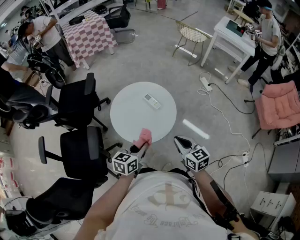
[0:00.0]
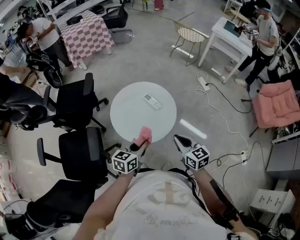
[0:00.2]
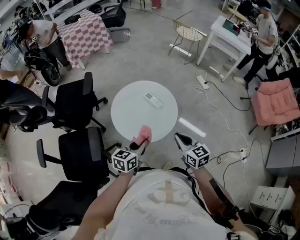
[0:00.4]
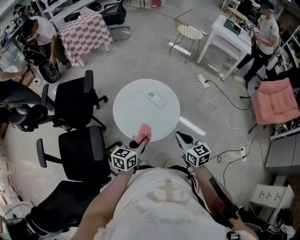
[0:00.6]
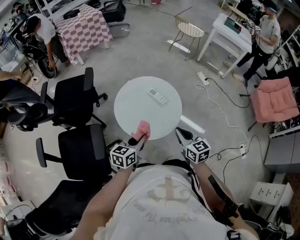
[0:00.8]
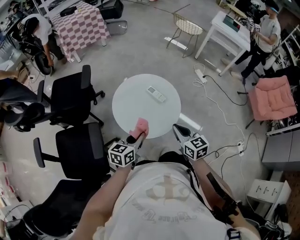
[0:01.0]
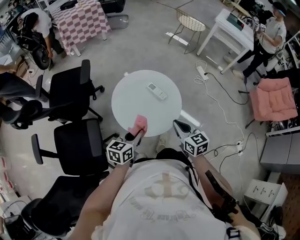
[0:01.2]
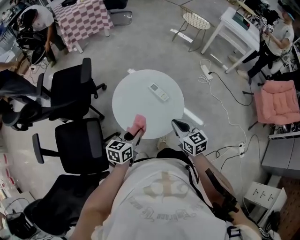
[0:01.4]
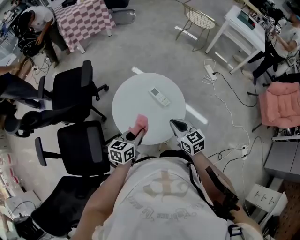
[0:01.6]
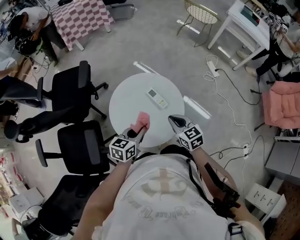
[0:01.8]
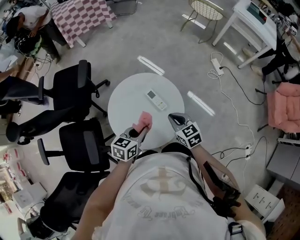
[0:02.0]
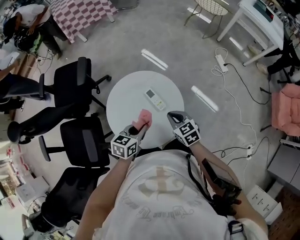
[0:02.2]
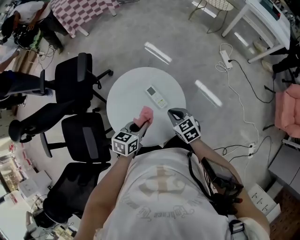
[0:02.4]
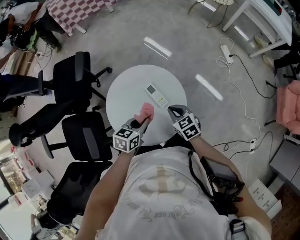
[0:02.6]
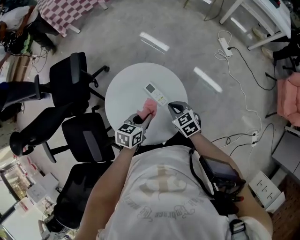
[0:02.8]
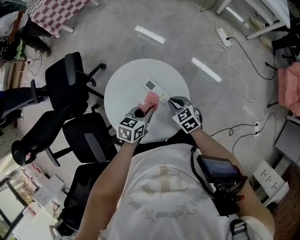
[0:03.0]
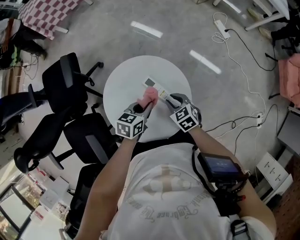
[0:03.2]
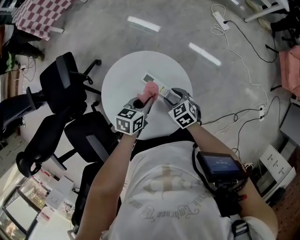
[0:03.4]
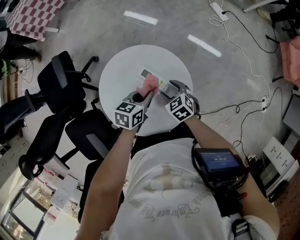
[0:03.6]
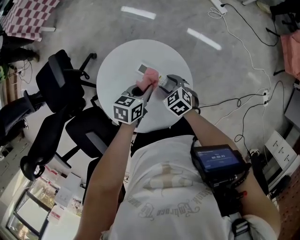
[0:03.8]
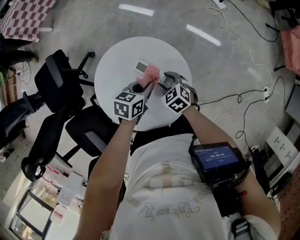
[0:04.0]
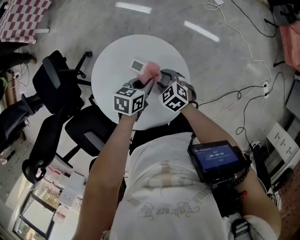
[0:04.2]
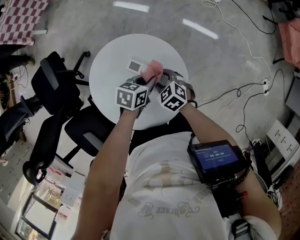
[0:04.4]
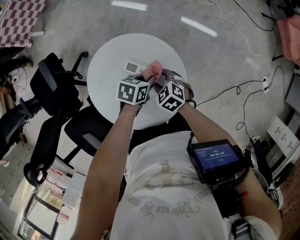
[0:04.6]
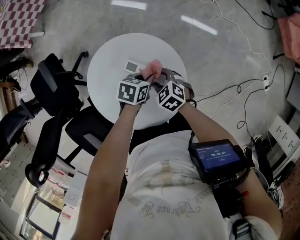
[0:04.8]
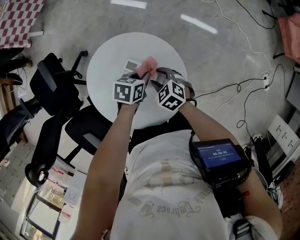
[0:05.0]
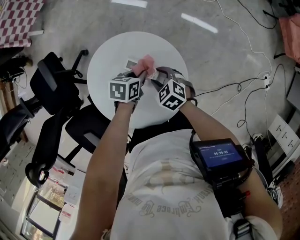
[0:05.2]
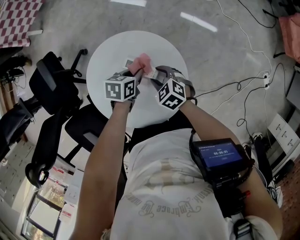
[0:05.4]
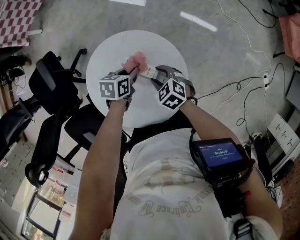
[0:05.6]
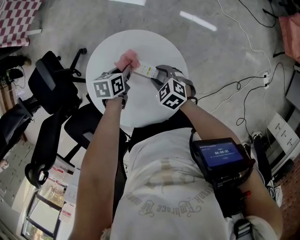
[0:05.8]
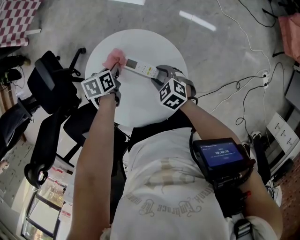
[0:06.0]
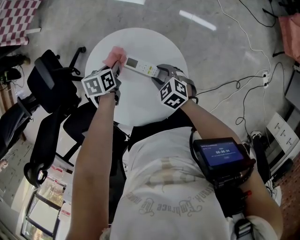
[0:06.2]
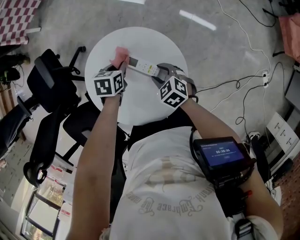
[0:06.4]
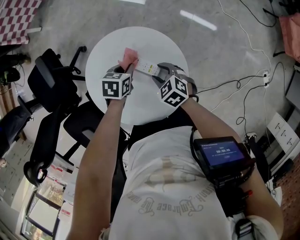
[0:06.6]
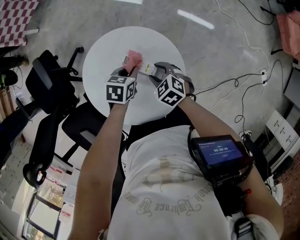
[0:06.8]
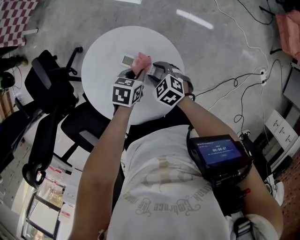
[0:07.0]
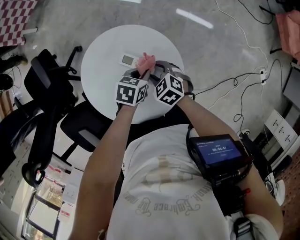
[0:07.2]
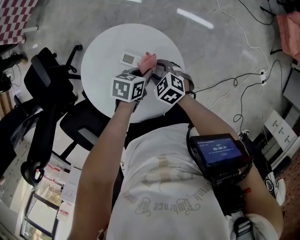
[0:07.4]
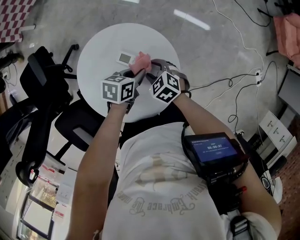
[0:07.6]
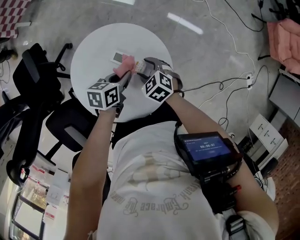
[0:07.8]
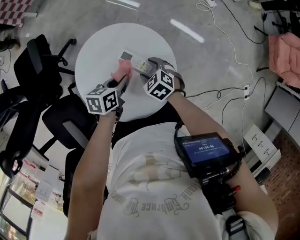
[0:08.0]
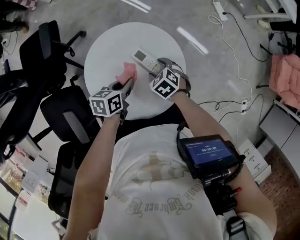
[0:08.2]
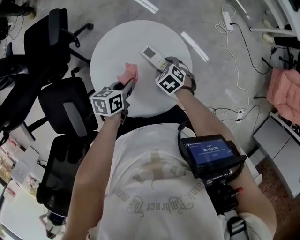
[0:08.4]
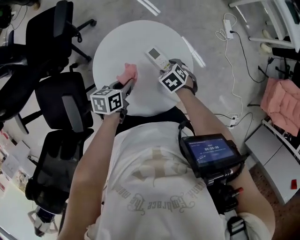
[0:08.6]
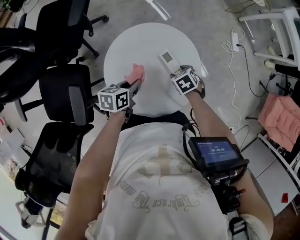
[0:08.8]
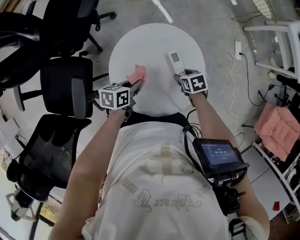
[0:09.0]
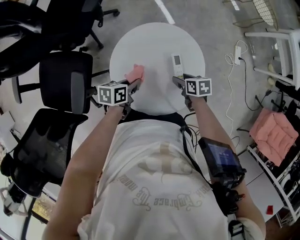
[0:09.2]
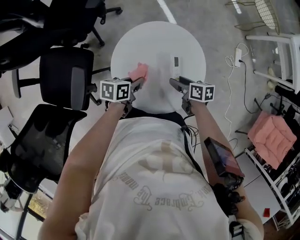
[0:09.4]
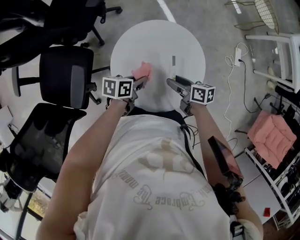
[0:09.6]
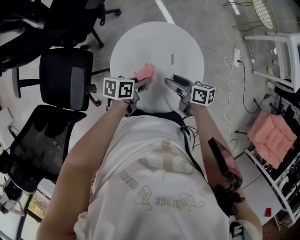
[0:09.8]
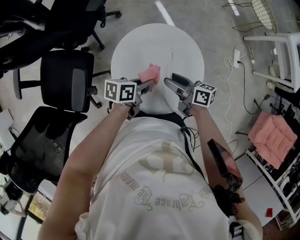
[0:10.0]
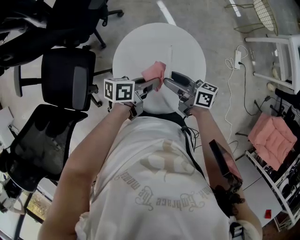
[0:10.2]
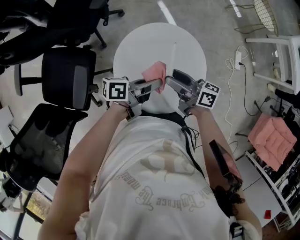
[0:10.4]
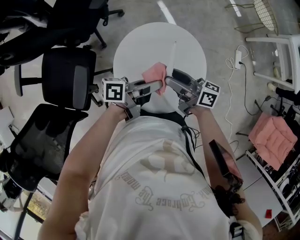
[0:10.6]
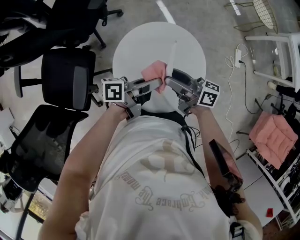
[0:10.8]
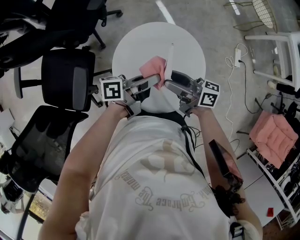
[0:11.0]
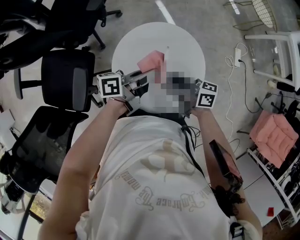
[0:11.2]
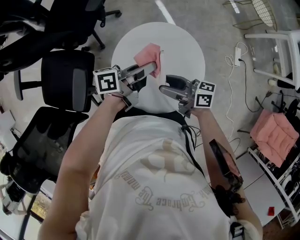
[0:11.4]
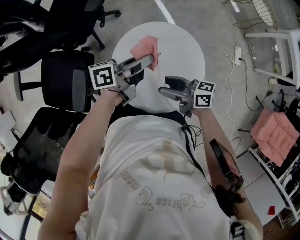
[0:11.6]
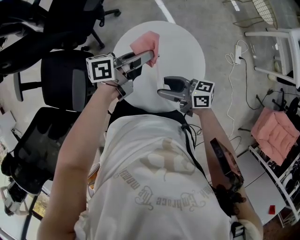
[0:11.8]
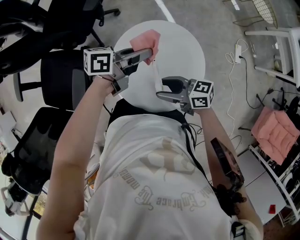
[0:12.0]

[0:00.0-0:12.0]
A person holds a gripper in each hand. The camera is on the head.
0:00.0 to 0:01.6: The two grippers go about 15 cm forward and to the left.
0:01.6 to 0:03.0: The left gripper goes approximately 20 cm forward, to the right and downward. Meanwhile the right gripper is displaced downward and forward by roughly 20 cm, and swivels approximately 20 degrees.
0:03.0 to 0:04.4: Both grippers move downward, about 5 cm. The right gripper opens up.
0:04.4 to 0:06.0: The left gripper ends up about 15 cm from where it was, and swivels roughly 30 degrees.
0:06.0 to 0:07.6: The left gripper shifts by about 15 cm, and changes its angle by some 20 degrees.
0:07.6 to 0:09.0: The left gripper shifts by approximately 20 cm, and rotates some 40 degrees.
0:09.0 to 0:10.4: The right gripper is displaced upward by some 20 cm, and points its fingers roughly 60 degrees further upward, while the left gripper shifts roughly 10 cm upward, and tips its fingers upward by approximately 40 degrees.
0:10.4 to 0:12.0: The right gripper moves approximately 5 cm, and swivels about 30 degrees; the left gripper shifts by approximately 10 cm.

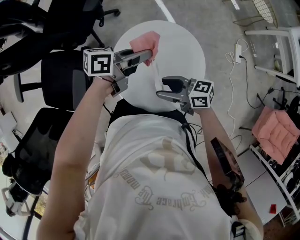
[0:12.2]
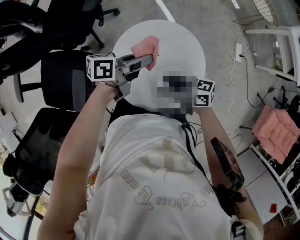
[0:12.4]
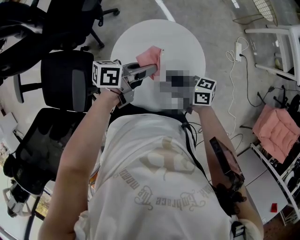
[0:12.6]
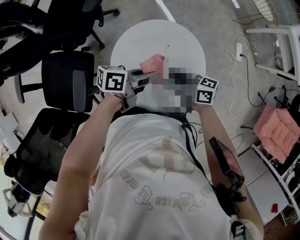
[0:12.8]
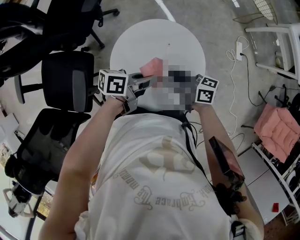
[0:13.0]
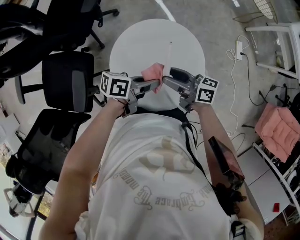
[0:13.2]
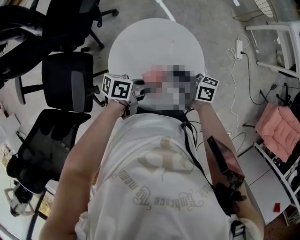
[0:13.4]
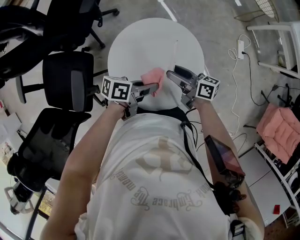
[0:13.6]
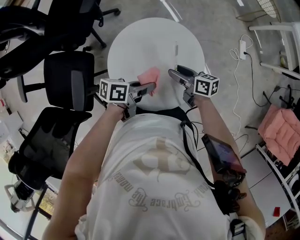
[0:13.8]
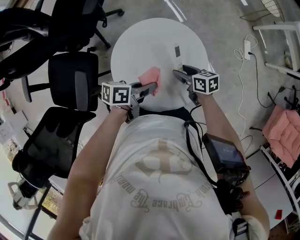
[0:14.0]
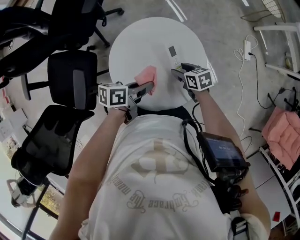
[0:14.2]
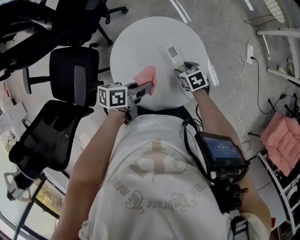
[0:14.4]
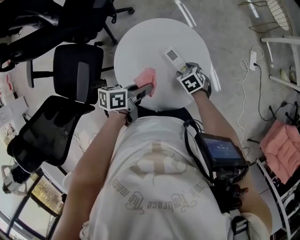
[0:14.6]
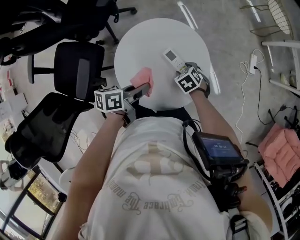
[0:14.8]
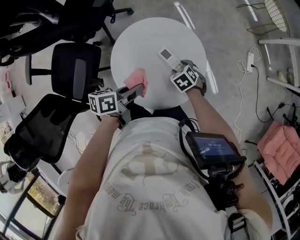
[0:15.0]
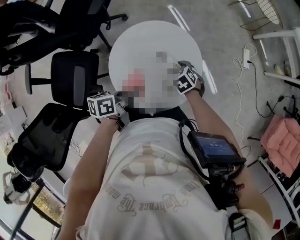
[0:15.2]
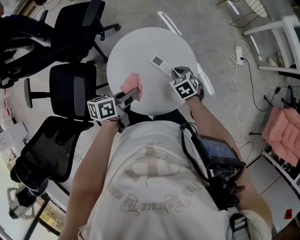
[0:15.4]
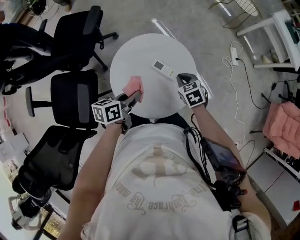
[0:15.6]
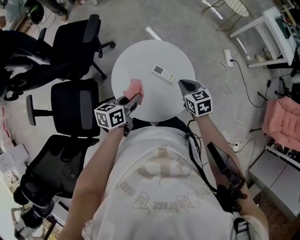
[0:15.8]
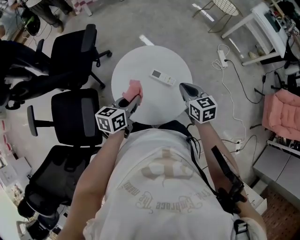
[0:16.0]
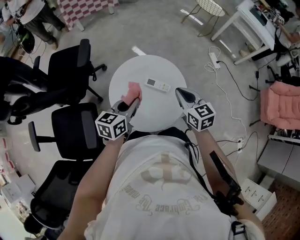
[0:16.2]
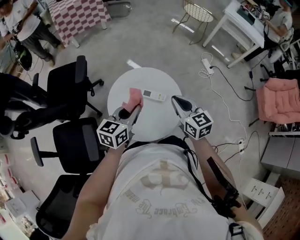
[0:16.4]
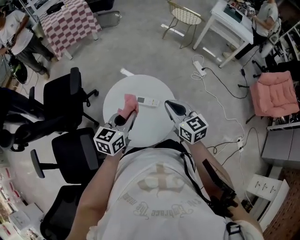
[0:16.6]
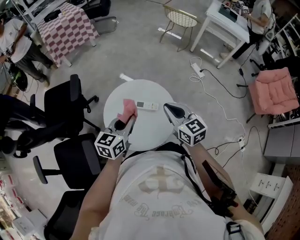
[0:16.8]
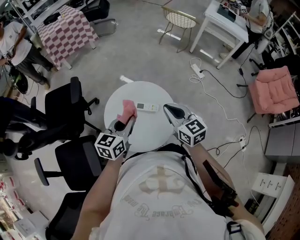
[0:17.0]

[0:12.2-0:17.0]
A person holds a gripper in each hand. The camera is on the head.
0:12.2 to 0:13.8: The left gripper shifts by about 15 cm; the right gripper shifts by roughly 15 cm, and changes its angle by some 30 degrees.
0:13.8 to 0:15.4: The right gripper reaches roughly 10 cm downward, then returns, points its fingers approximately 40 degrees further downward, and closes. Meanwhile the left gripper changes place by some 5 cm, and turns by about 20 degrees.
0:15.4 to 0:17.0: The right gripper moves upward, some 25 cm, and points its fingers some 40 degrees further upward, while the left gripper travels upward by roughly 15 cm, and rolls clockwise, seen from behind, by about 50 degrees.

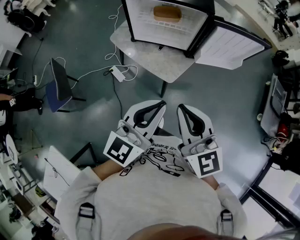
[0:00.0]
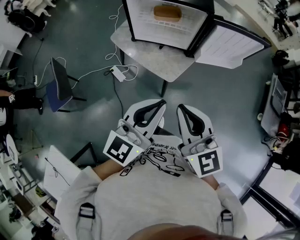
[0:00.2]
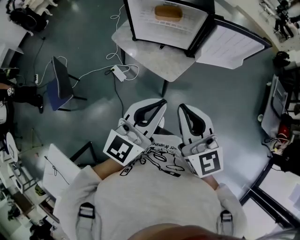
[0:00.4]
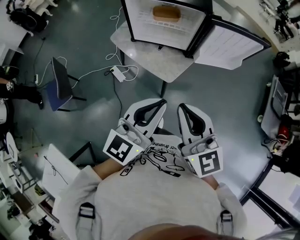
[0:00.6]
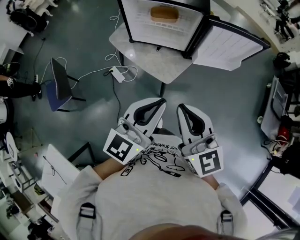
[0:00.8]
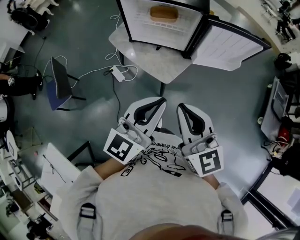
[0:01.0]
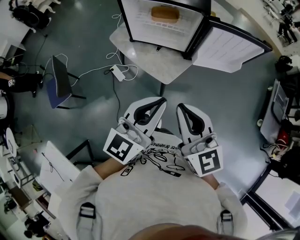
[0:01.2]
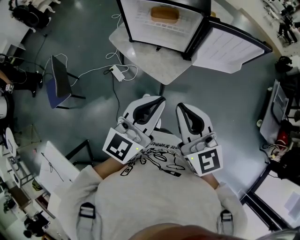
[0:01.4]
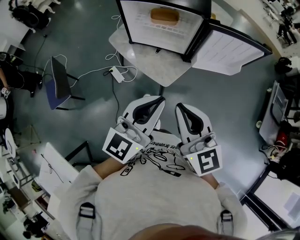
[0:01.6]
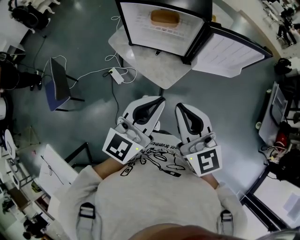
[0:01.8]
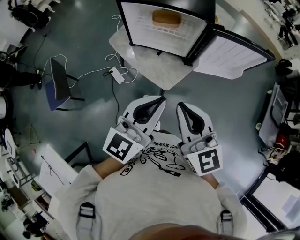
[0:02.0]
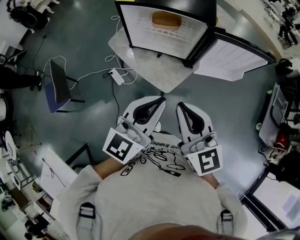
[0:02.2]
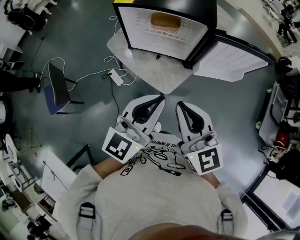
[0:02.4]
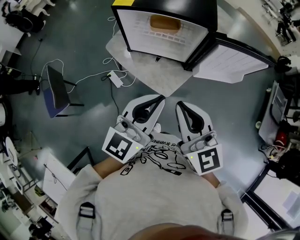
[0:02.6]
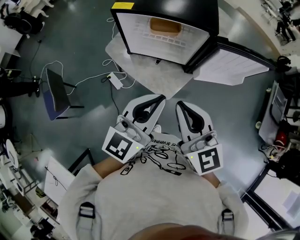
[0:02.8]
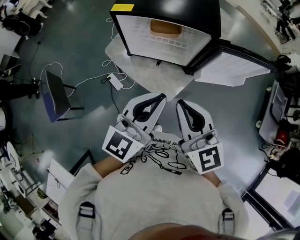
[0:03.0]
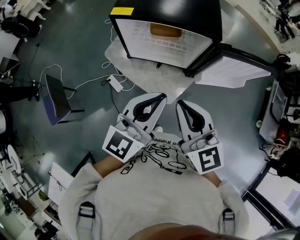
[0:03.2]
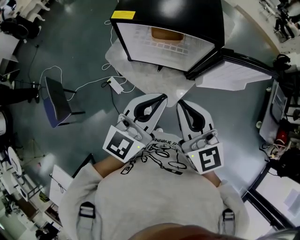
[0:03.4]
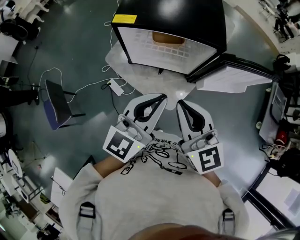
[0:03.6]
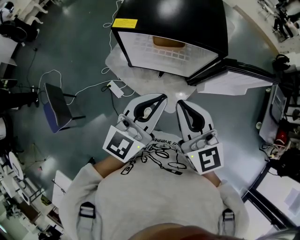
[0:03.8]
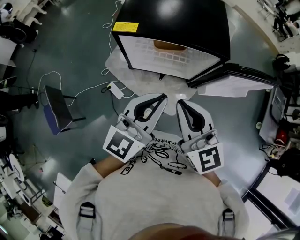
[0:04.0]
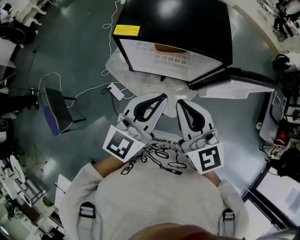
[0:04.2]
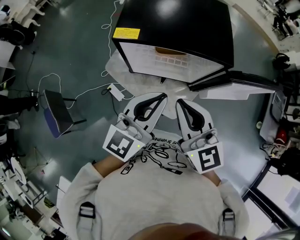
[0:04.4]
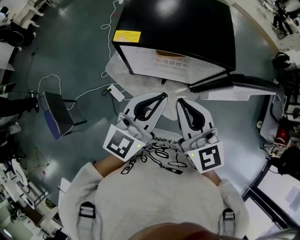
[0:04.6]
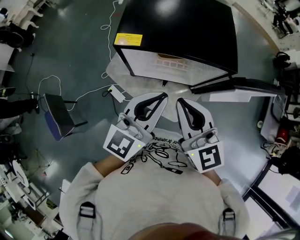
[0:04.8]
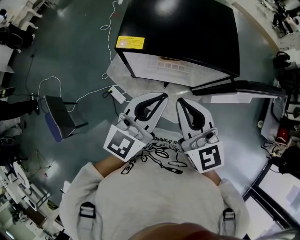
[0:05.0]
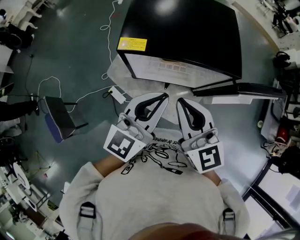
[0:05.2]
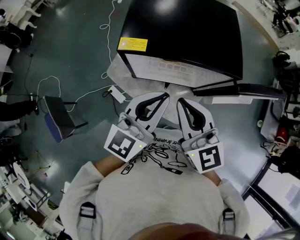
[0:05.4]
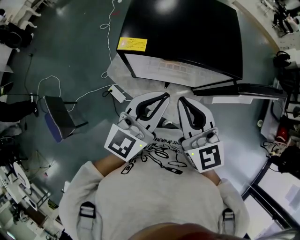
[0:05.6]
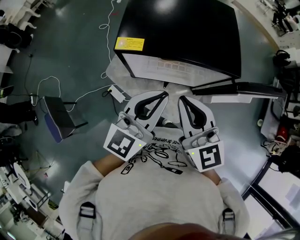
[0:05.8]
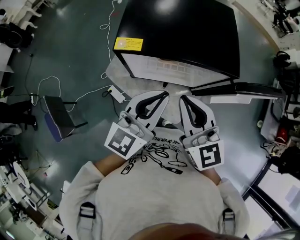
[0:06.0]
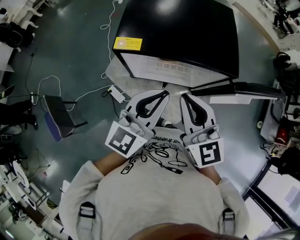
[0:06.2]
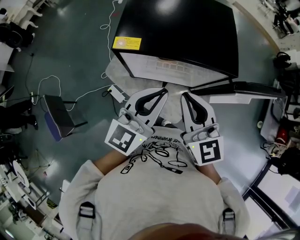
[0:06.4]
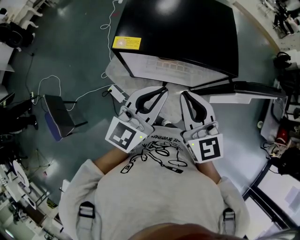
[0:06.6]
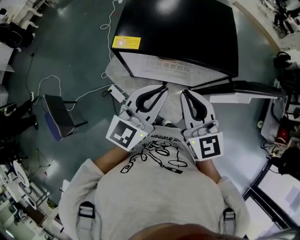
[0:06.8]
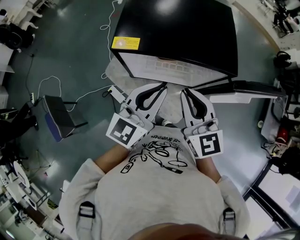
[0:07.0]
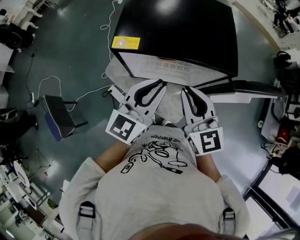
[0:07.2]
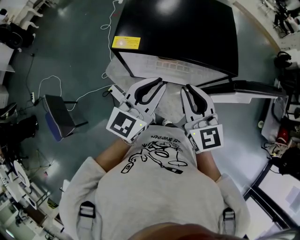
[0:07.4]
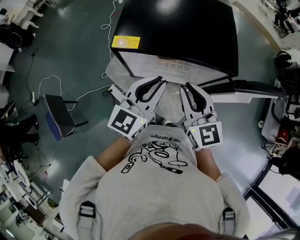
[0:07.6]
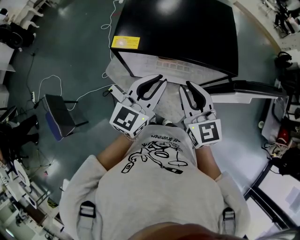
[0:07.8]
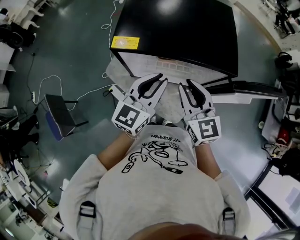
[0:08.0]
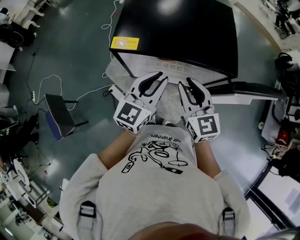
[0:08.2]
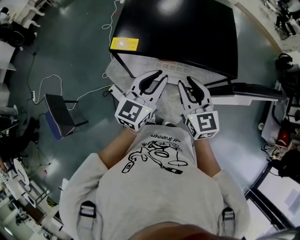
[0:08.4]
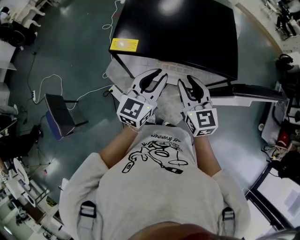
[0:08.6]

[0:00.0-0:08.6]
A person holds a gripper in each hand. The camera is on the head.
0:00.0 to 0:01.4: The right gripper changes place by roughly 5 cm. Meanwhile the left gripper shifts by roughly 5 cm.
0:01.4 to 0:02.8: The grippers both shift forward by about 10 cm.
0:02.8 to 0:04.4: Both grippers travel together forward and to the left, some 15 cm.
0:04.4 to 0:05.8: Both grippers move forward, some 5 cm.
0:05.8 to 0:07.2: The right gripper changes place by some 5 cm.
0:07.2 to 0:08.6: Both grippers travel together downward and forward, roughly 10 cm.
